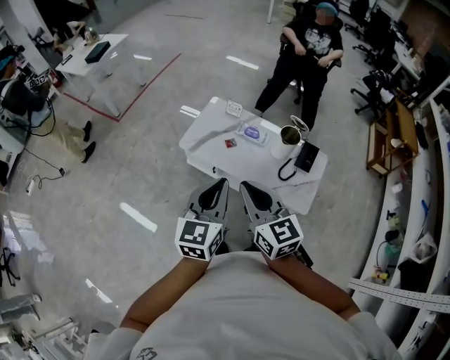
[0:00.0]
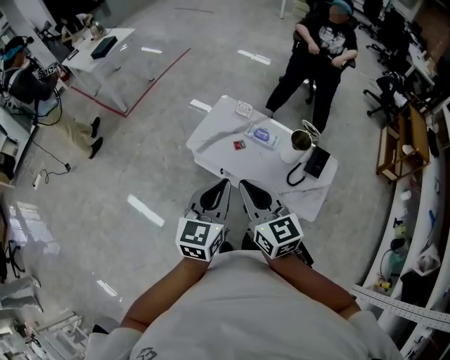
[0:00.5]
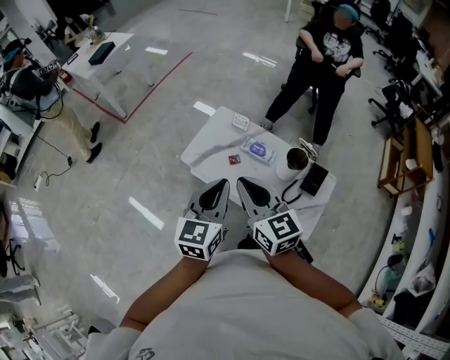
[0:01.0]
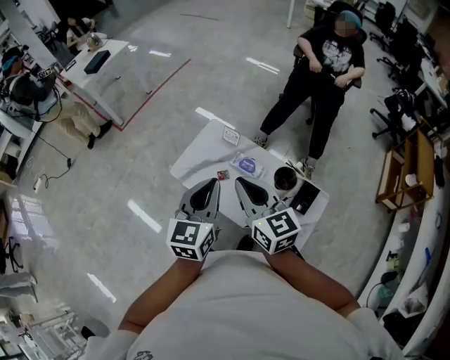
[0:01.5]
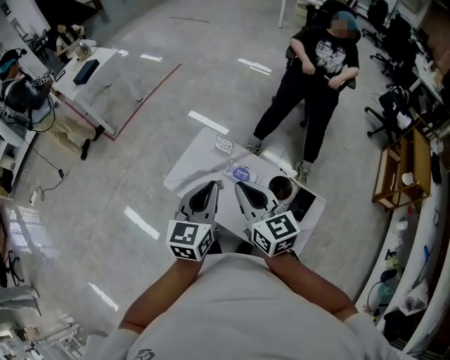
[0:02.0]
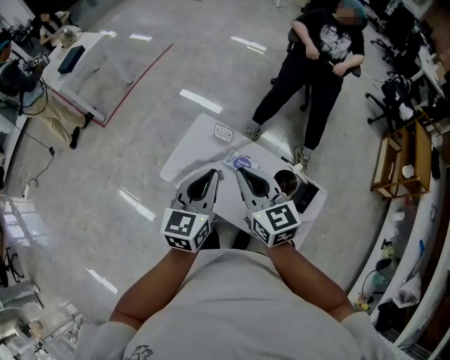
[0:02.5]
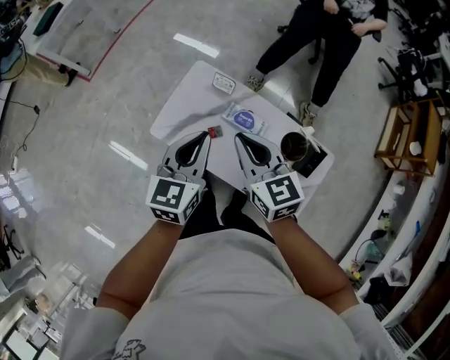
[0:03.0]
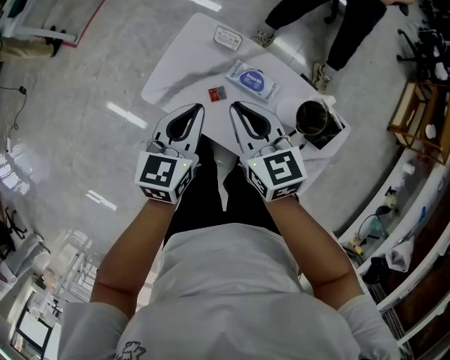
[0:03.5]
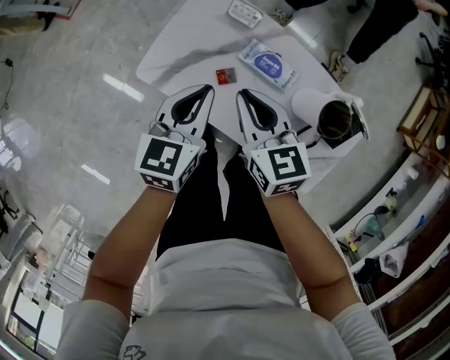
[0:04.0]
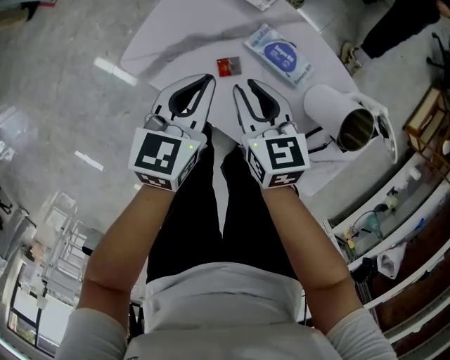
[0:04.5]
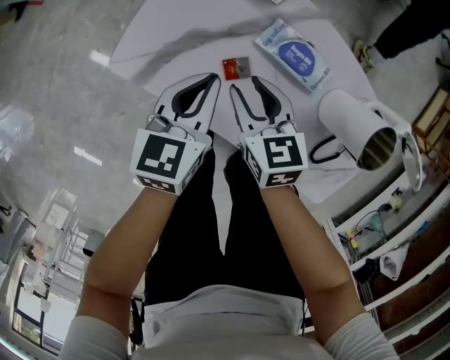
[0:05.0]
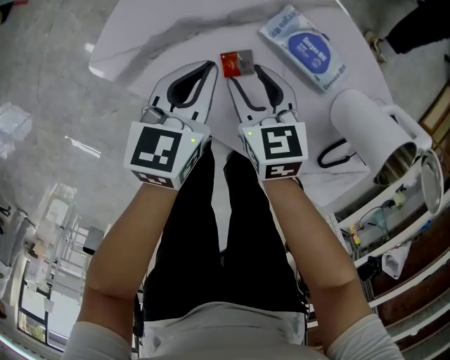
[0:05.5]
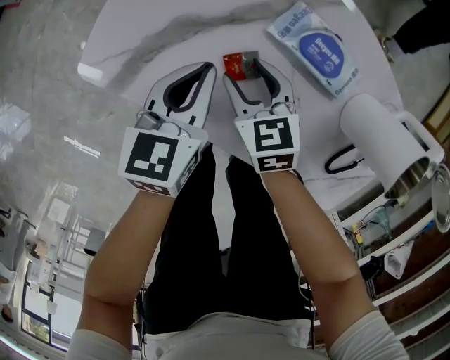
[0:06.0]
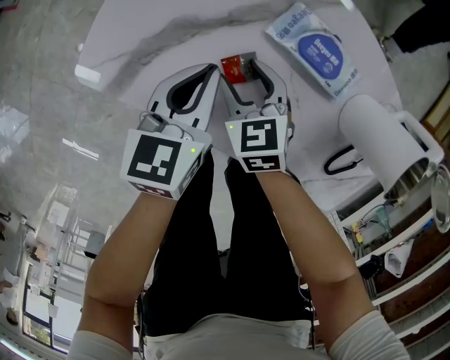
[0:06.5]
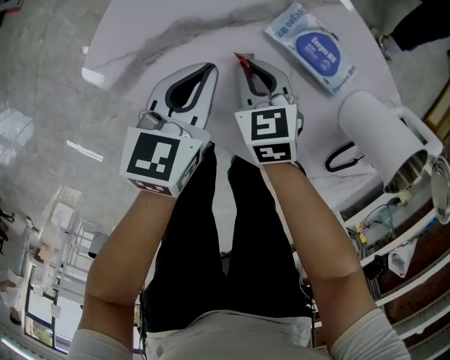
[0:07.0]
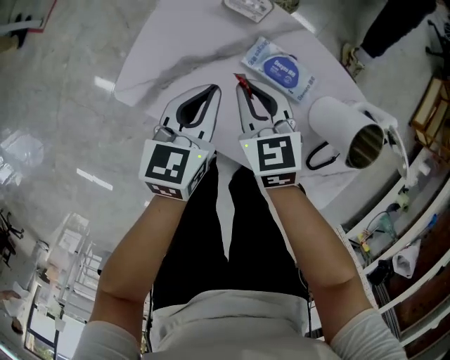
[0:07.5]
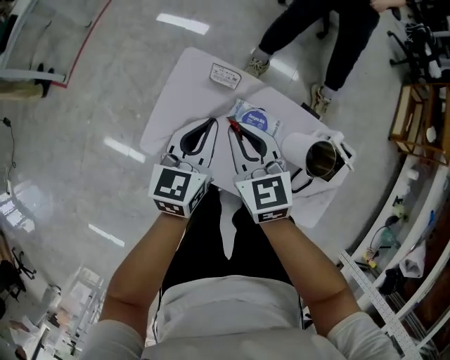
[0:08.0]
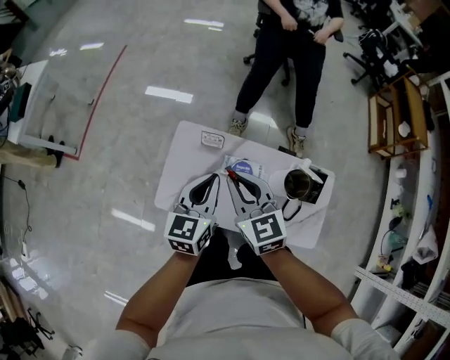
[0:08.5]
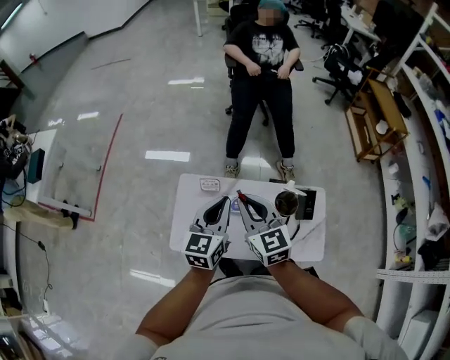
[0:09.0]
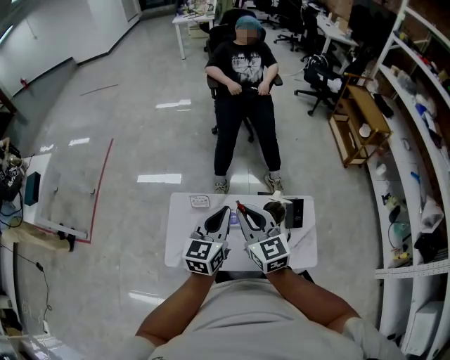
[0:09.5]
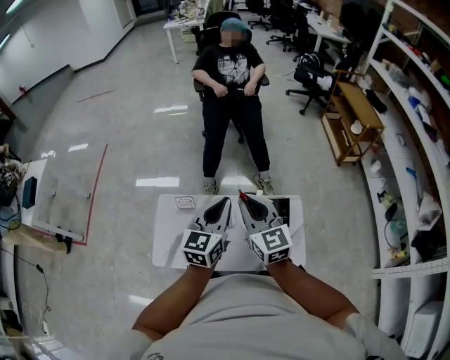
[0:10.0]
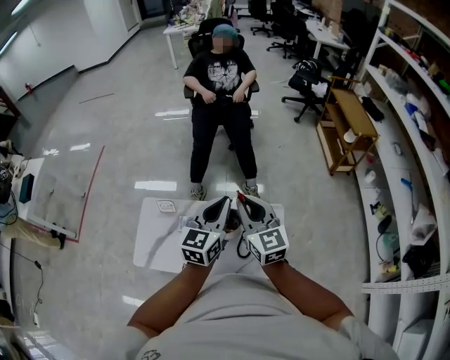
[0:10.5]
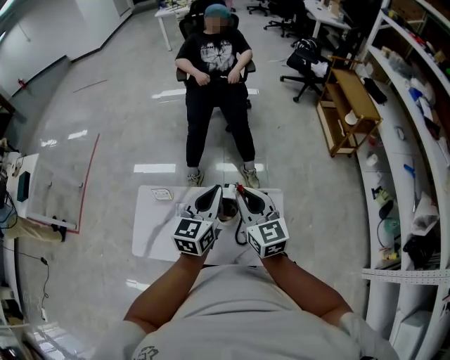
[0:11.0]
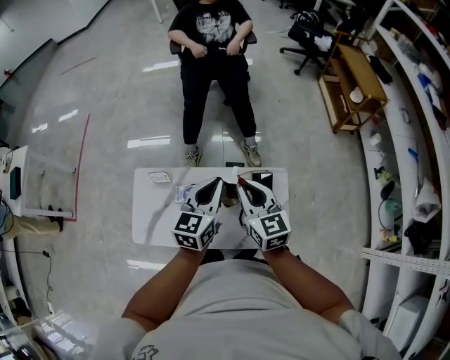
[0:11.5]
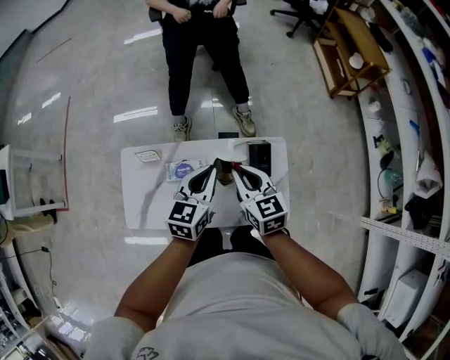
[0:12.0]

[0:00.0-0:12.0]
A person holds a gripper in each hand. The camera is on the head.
0:00.0 to 0:02.0: Both grippers travel together forward and to the right, roughly 30 cm.
0:02.0 to 0:04.0: The grippers both shift downward and forward by some 30 cm.
0:04.0 to 0:06.0: Both grippers travel together downward, about 30 cm. The right gripper swivels some 20 degrees, and opens up.
0:06.0 to 0:08.0: Both grippers travel together upward, roughly 35 cm. The right gripper swivels roughly 20 degrees, and closes.
0:08.0 to 0:10.0: The two grippers go some 35 cm upward and to the right. The right gripper swivels about 30 degrees. The left gripper changes its angle by roughly 30 degrees.
0:10.0 to 0:12.0: The left gripper is displaced downward, to the right and forward by about 20 cm; the right gripper goes roughly 20 cm downward and to the right, and swivels about 20 degrees.

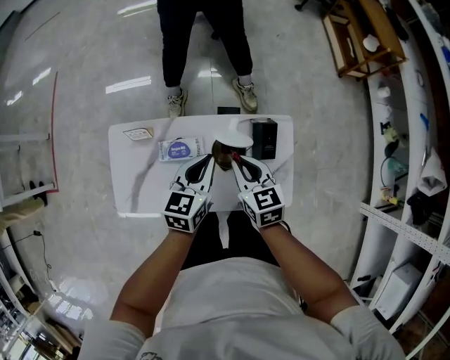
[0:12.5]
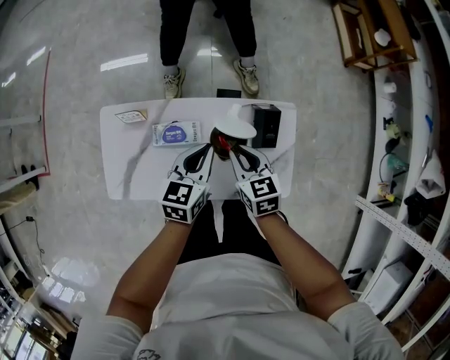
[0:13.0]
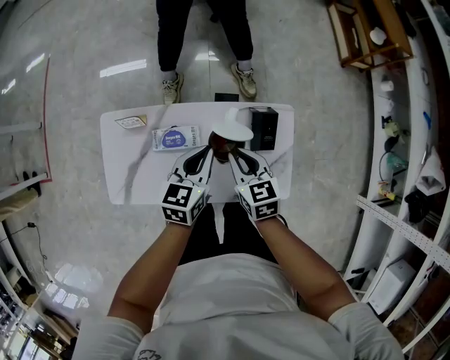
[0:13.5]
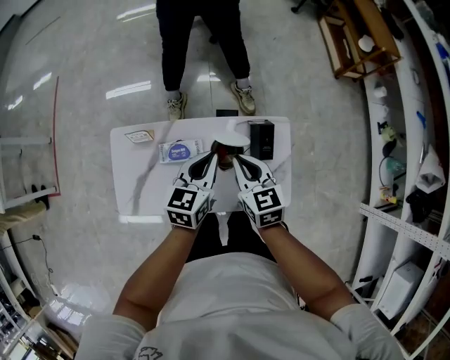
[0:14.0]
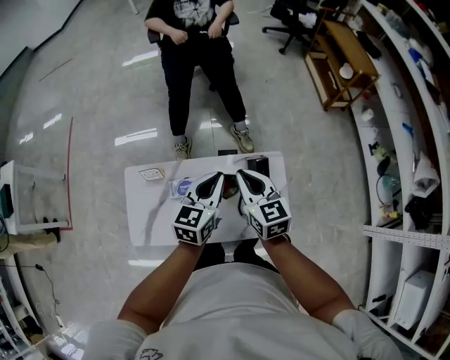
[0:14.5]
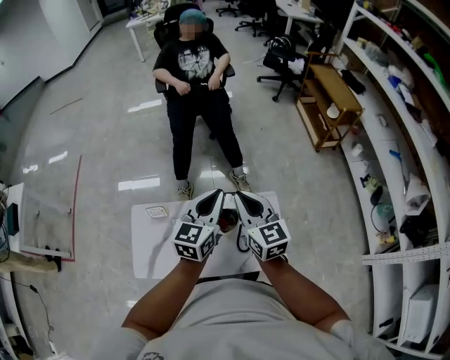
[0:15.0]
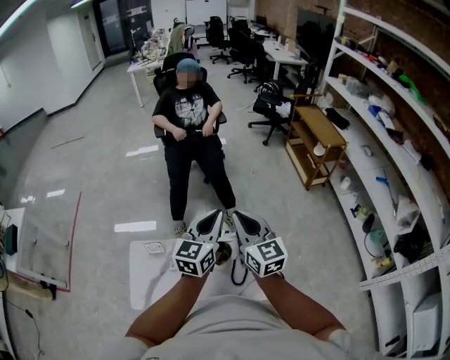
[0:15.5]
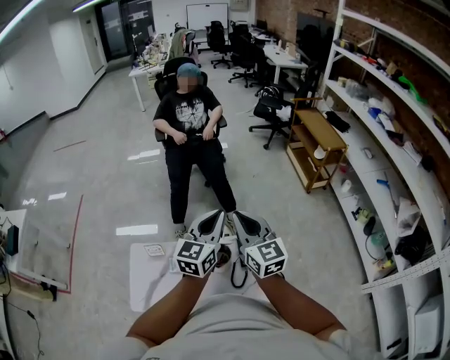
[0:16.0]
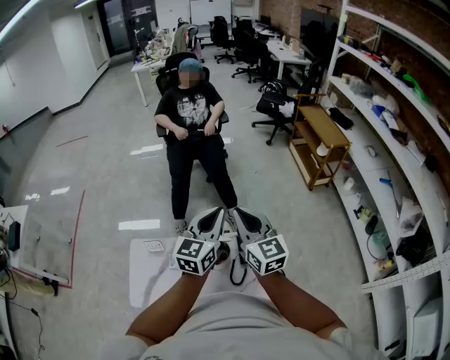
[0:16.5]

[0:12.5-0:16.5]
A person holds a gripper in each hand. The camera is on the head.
0:12.5 to 0:14.5: Both grippers travel together upward, about 10 cm.
0:14.5 to 0:16.5: Both grippers travel together upward, roughly 20 cm. The right gripper swivels some 20 degrees.

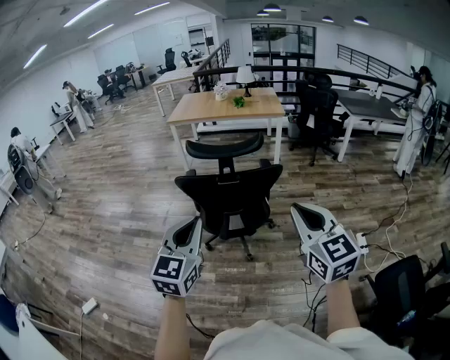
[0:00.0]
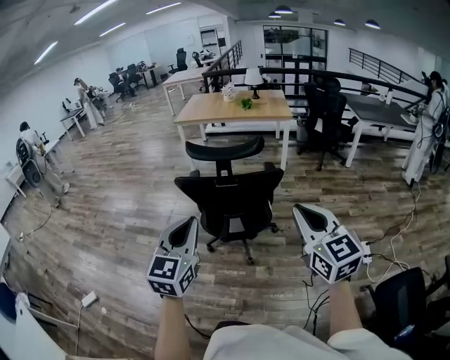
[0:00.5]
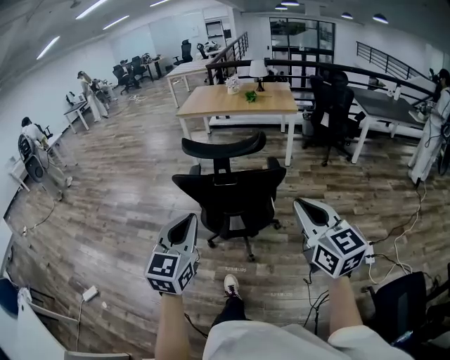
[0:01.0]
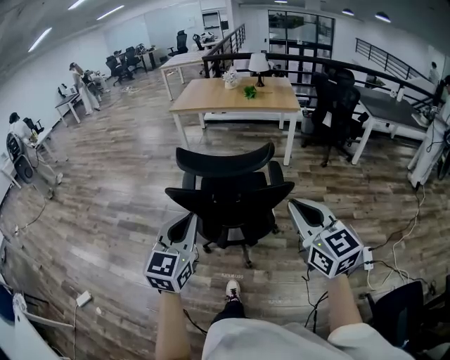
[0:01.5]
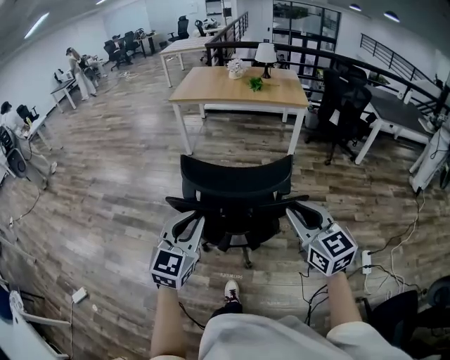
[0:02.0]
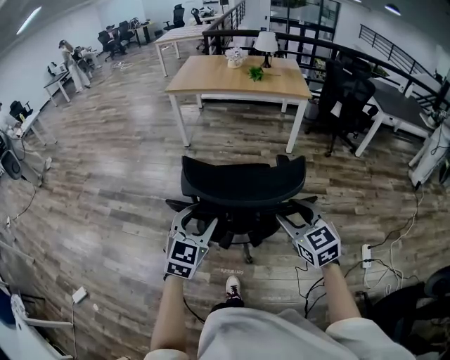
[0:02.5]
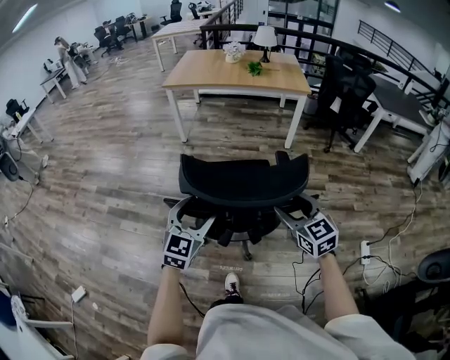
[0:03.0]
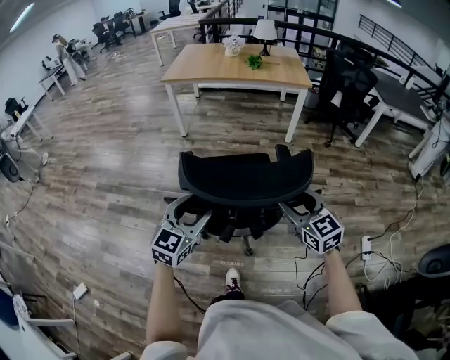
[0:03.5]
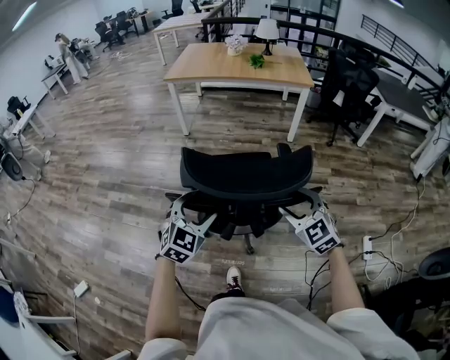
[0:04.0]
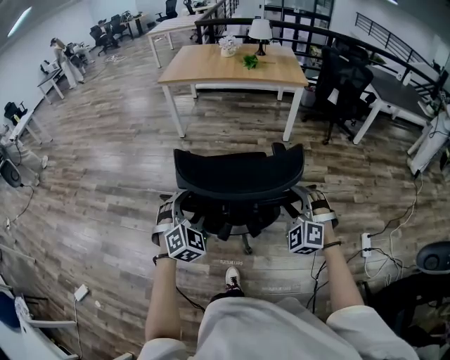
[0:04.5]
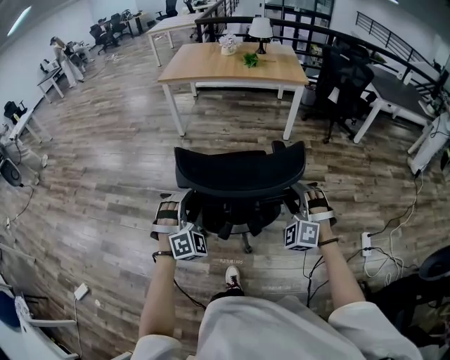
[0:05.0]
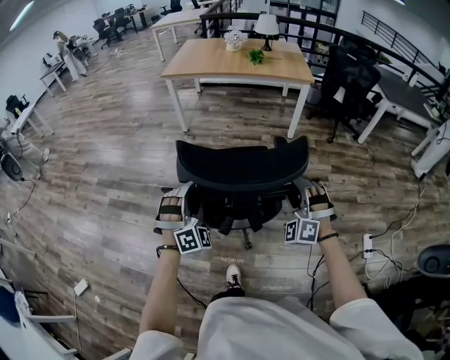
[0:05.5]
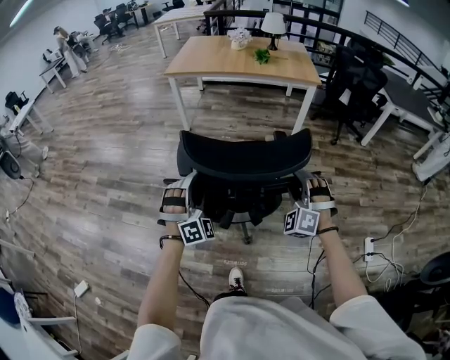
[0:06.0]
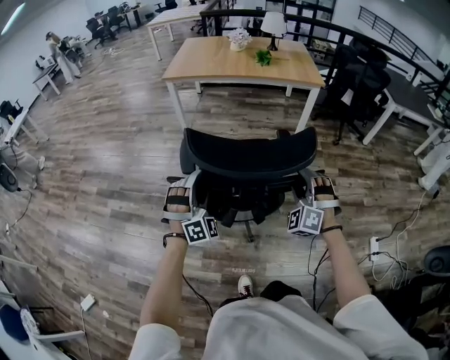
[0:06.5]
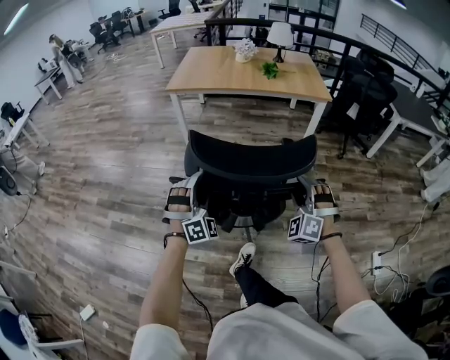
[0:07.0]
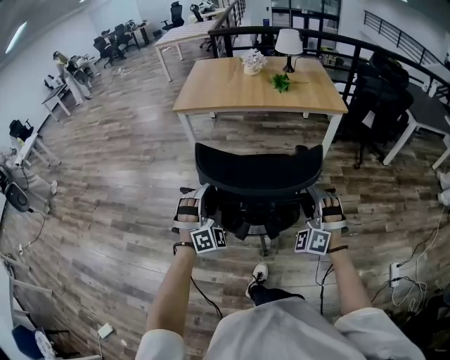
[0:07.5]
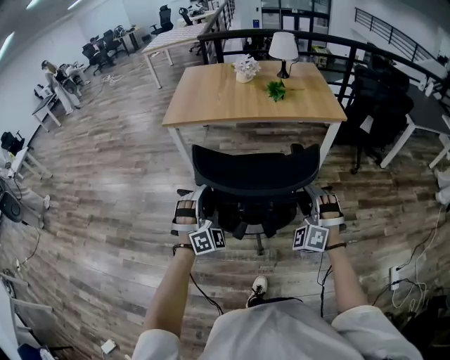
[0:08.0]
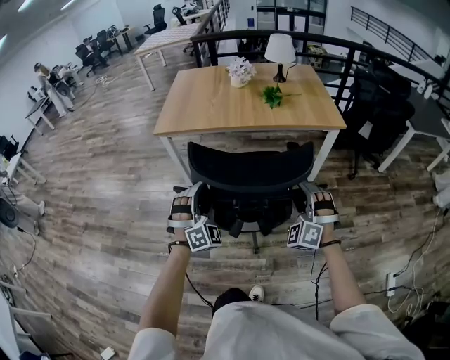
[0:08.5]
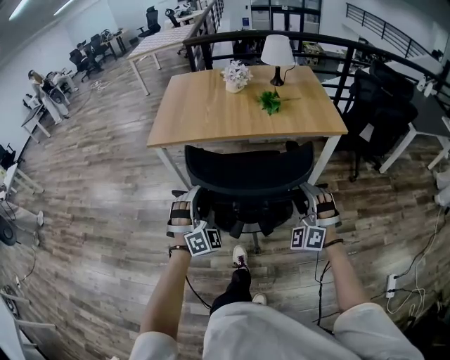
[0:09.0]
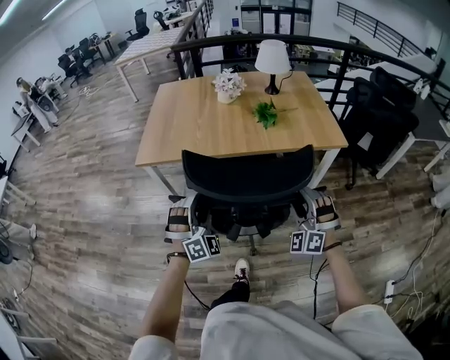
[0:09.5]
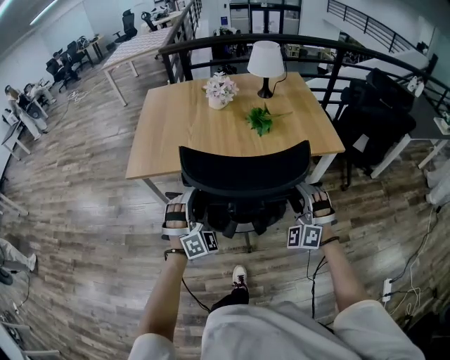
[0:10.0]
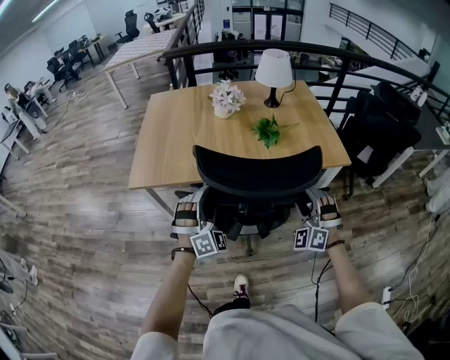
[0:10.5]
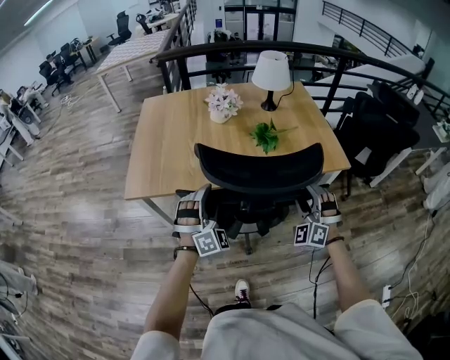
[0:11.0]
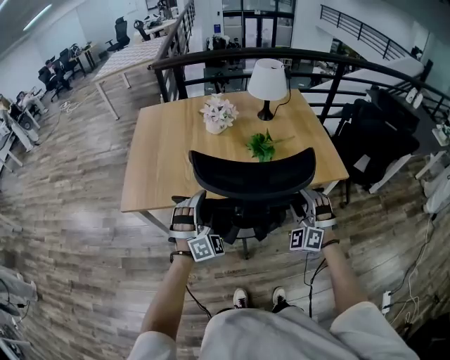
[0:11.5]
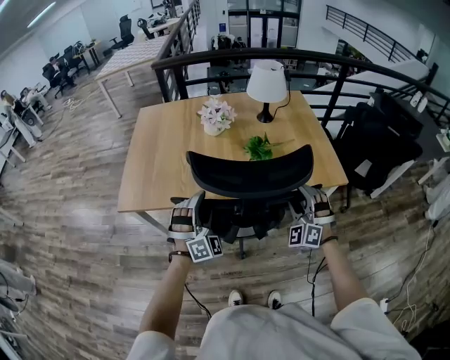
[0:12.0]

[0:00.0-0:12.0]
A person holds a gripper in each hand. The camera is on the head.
0:00.0 to 0:02.0: The grippers both shift forward by roughly 25 cm.
0:02.0 to 0:04.0: The grippers both shift downward and forward by about 15 cm. The left gripper swivels about 20 degrees, and opens its fingers. The right gripper changes its angle by approximately 30 degrees, and opens its fingers.
0:04.0 to 0:06.0: The two grippers go roughly 10 cm forward. The right gripper twists approximately 40 degrees counterclockwise, seen from behind, while the left gripper rolls clockwise, seen from behind, by roughly 40 degrees.
0:06.0 to 0:08.0: Both grippers move forward, about 35 cm.
0:08.0 to 0:10.0: The two grippers go some 35 cm forward.
0:10.0 to 0:12.0: The two grippers go approximately 15 cm forward.
